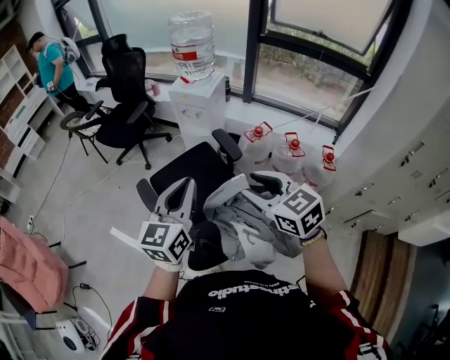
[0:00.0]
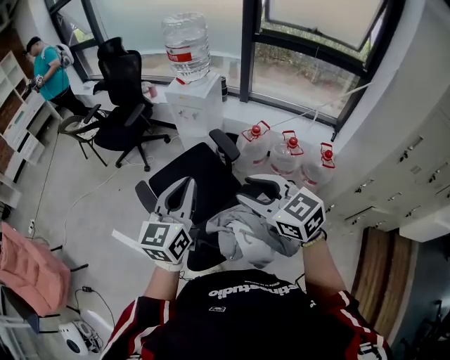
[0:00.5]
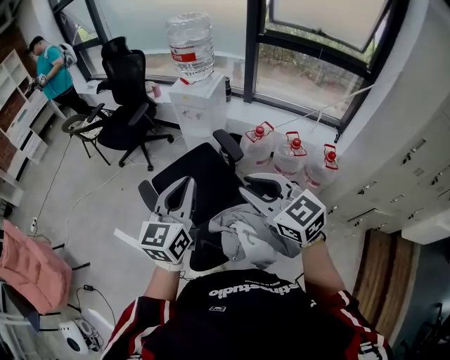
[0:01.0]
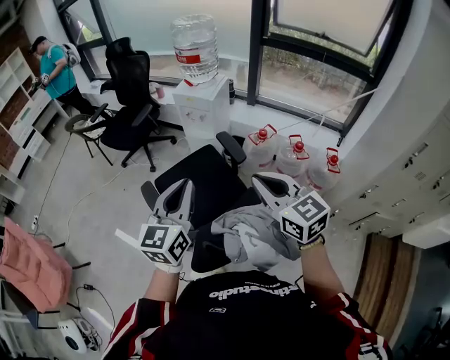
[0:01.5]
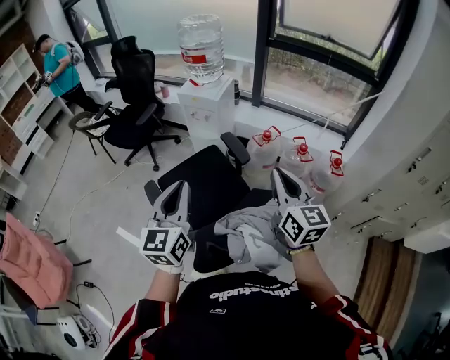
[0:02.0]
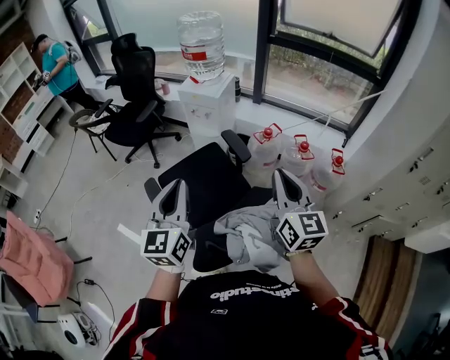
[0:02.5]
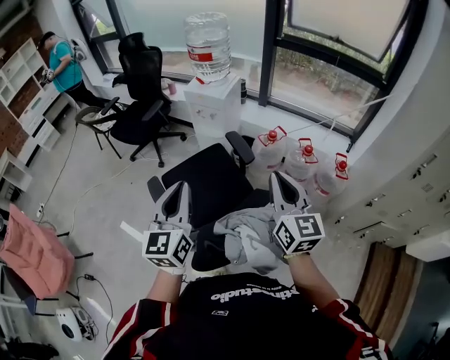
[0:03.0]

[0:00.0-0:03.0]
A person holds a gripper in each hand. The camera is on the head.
0:00.0 to 0:01.5: The right gripper closes.
0:01.5 to 0:03.0: The right gripper changes place by approximately 5 cm, and swivels roughly 30 degrees.

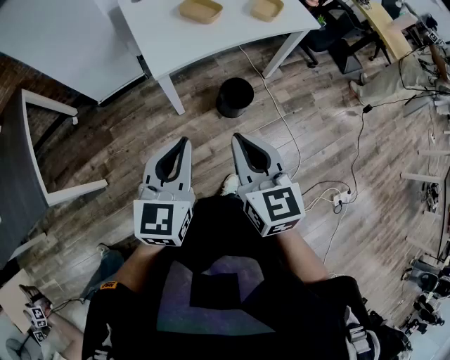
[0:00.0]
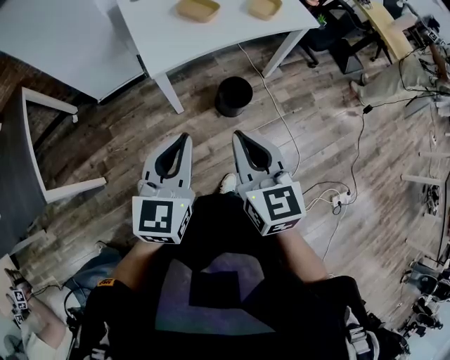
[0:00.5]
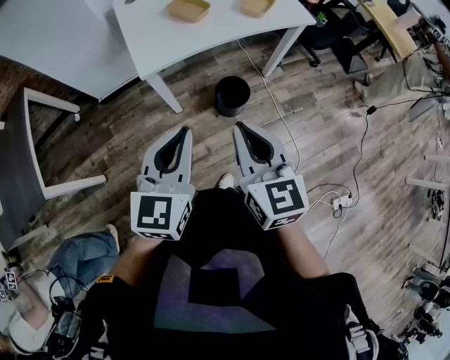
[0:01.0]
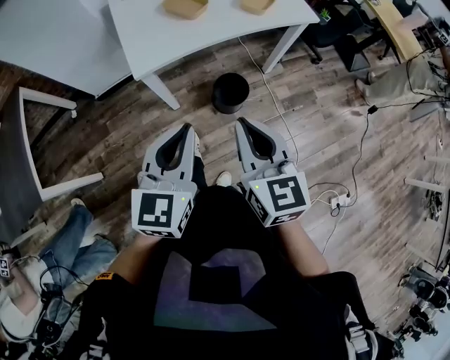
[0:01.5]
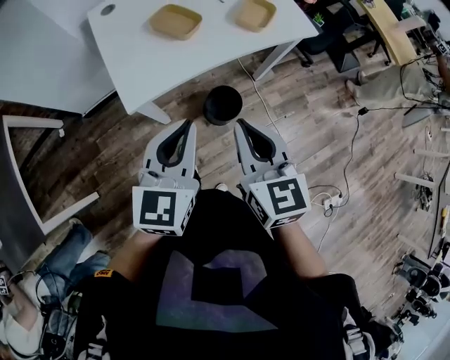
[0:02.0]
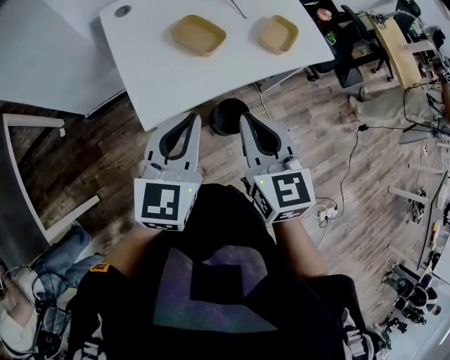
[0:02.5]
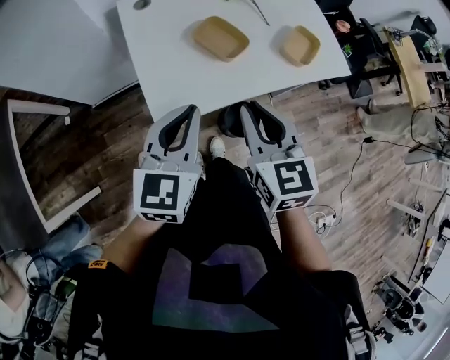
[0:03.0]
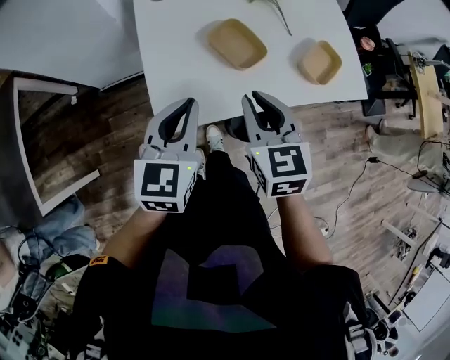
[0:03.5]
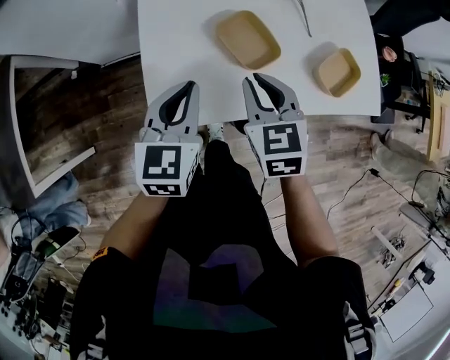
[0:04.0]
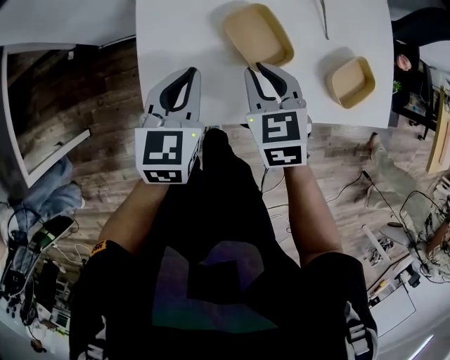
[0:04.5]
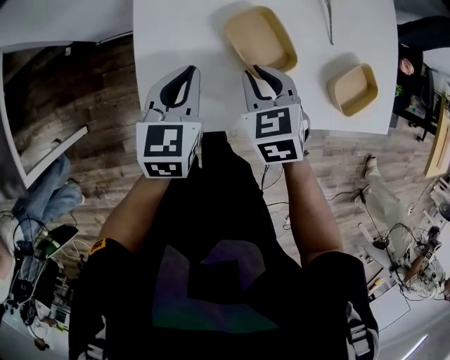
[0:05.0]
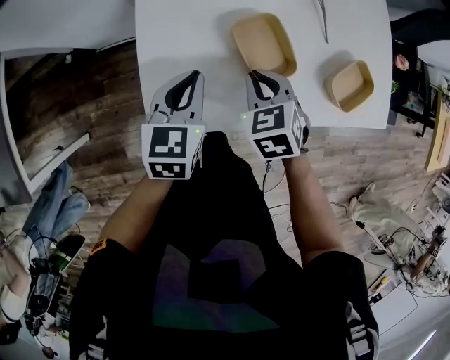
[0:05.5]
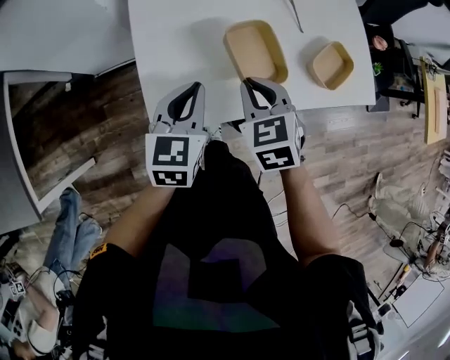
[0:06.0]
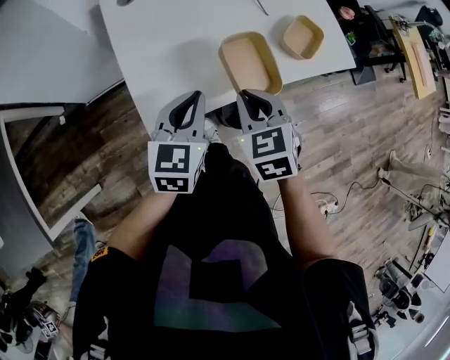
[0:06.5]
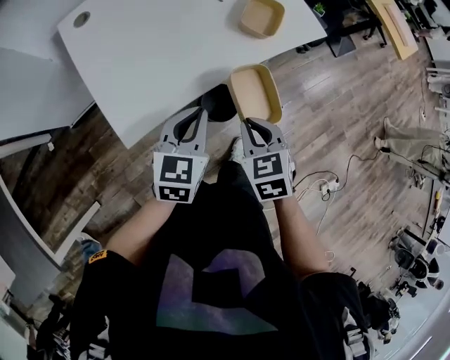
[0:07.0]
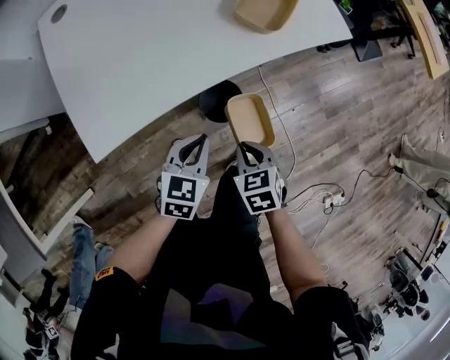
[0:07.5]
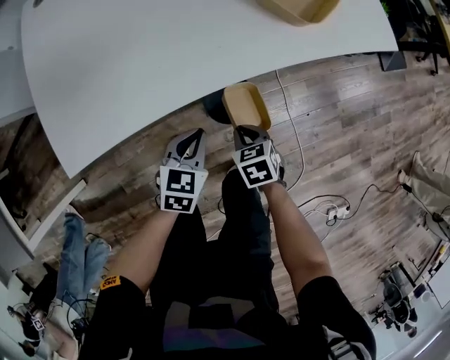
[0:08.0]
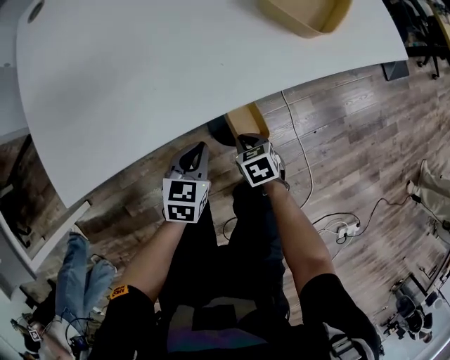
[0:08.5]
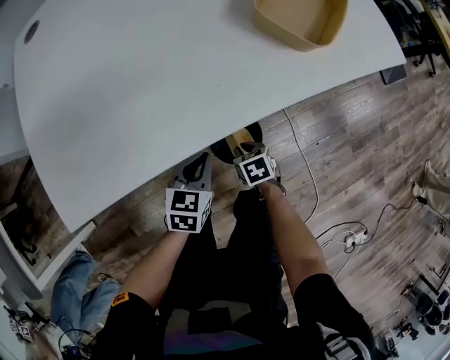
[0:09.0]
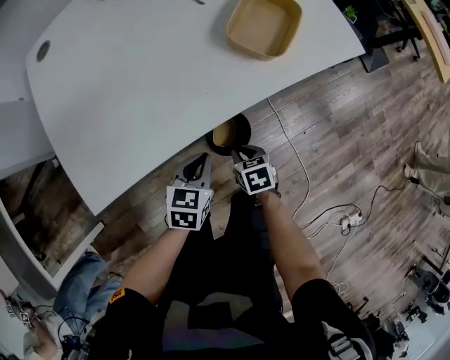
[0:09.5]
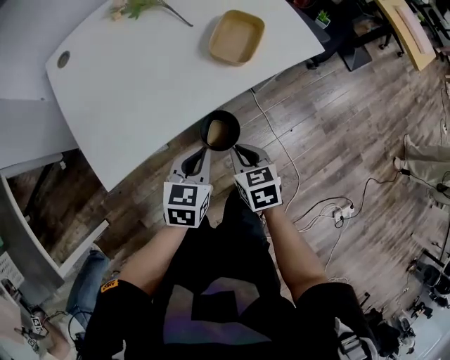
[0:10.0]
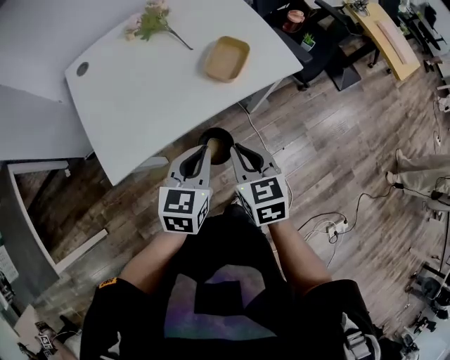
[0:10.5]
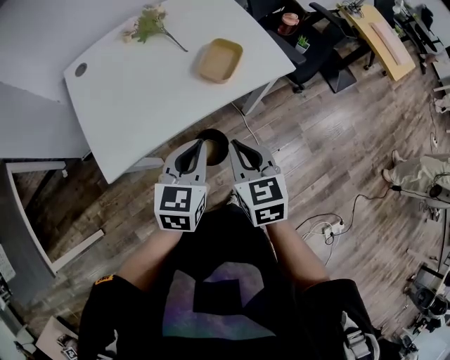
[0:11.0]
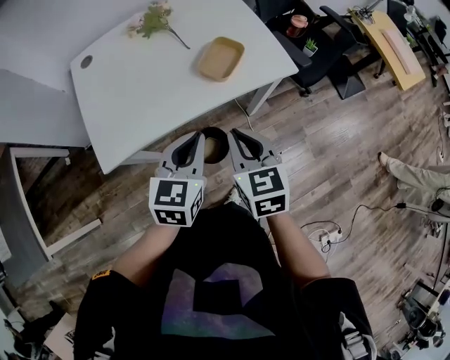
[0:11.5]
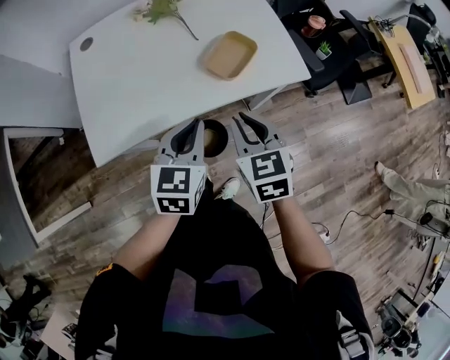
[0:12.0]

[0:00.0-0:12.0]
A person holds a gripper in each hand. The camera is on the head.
0:00.0 to 0:02.0: The left gripper is displaced forward and to the right by some 20 cm, while the right gripper goes some 20 cm forward.
0:02.0 to 0:04.0: The grippers both shift forward by roughly 30 cm. The right gripper swivels approximately 30 degrees, while the left gripper changes its angle by about 20 degrees.
0:04.0 to 0:06.0: The right gripper goes downward and returns, some 10 cm each way.
0:06.0 to 0:08.0: The left gripper goes about 35 cm downward and to the right, and swivels approximately 30 degrees, while the right gripper shifts some 40 cm downward, to the right and backward, and changes its angle by about 30 degrees.
0:08.0 to 0:10.0: The grippers both shift upward by some 20 cm. The right gripper turns by approximately 20 degrees.
0:10.0 to 0:12.0: The right gripper shifts about 20 cm upward and forward, and rotates approximately 20 degrees, while the left gripper is displaced upward by some 15 cm.

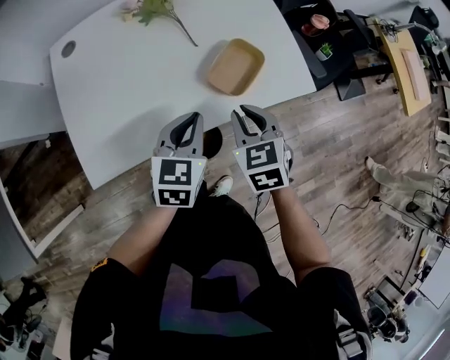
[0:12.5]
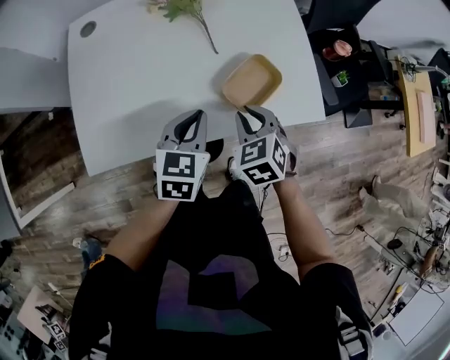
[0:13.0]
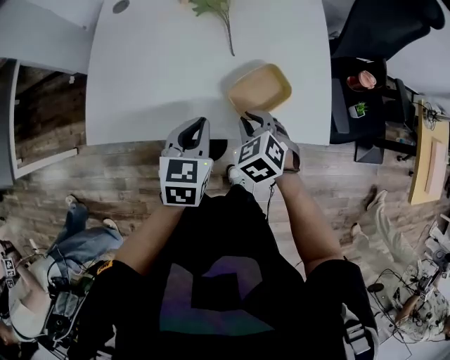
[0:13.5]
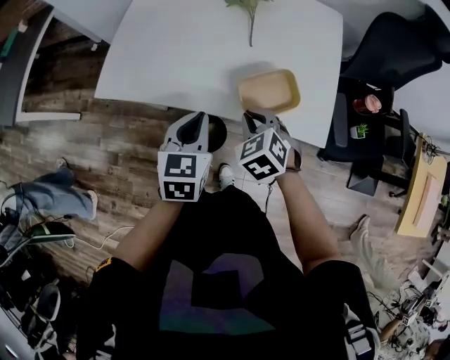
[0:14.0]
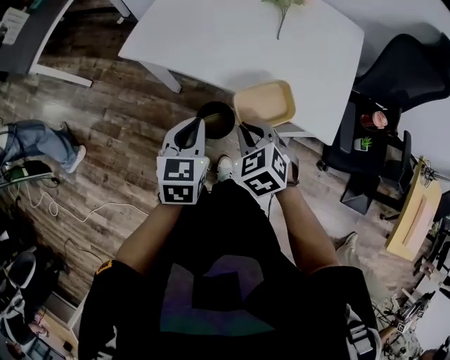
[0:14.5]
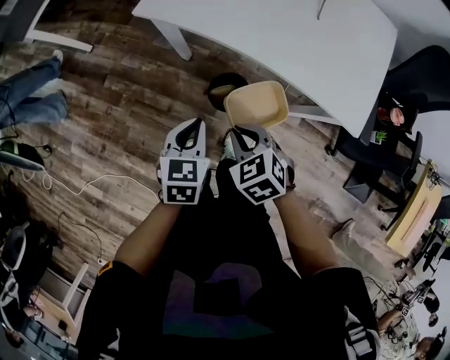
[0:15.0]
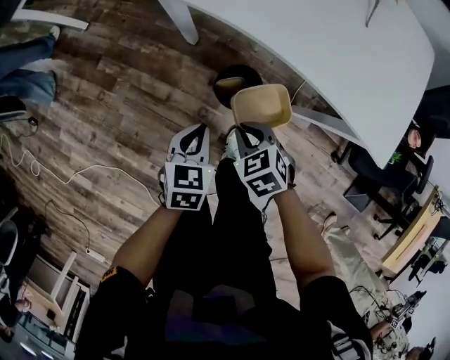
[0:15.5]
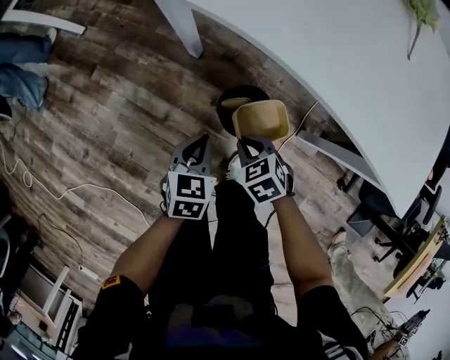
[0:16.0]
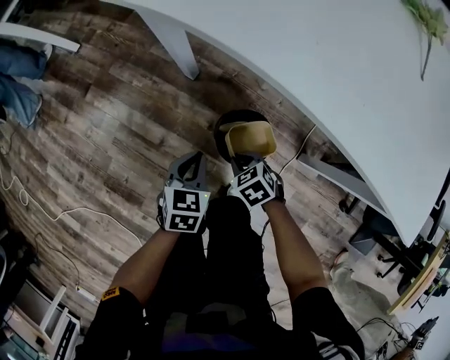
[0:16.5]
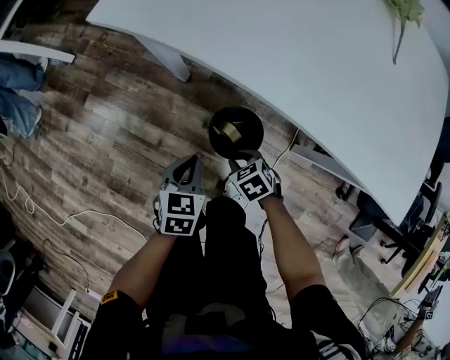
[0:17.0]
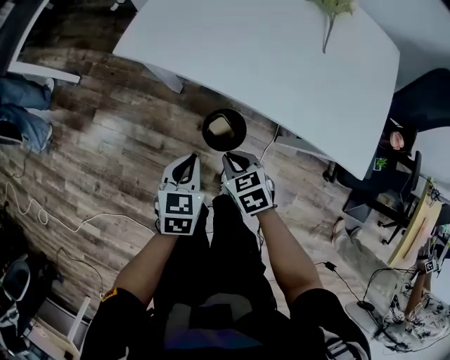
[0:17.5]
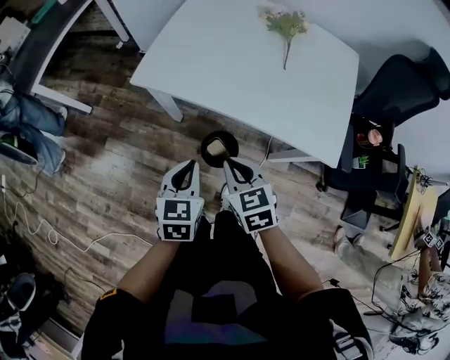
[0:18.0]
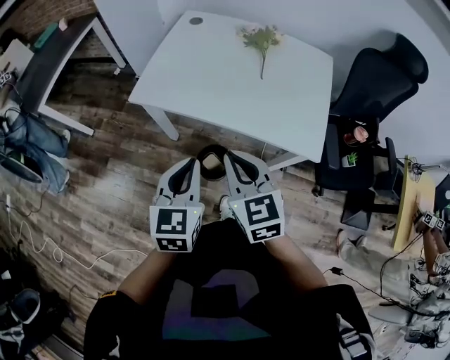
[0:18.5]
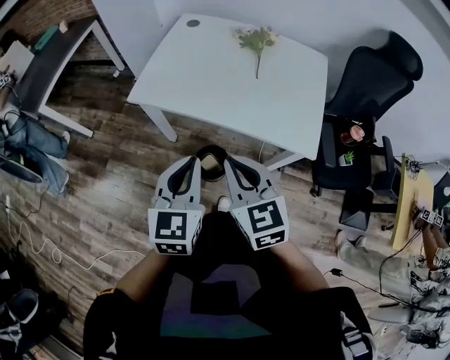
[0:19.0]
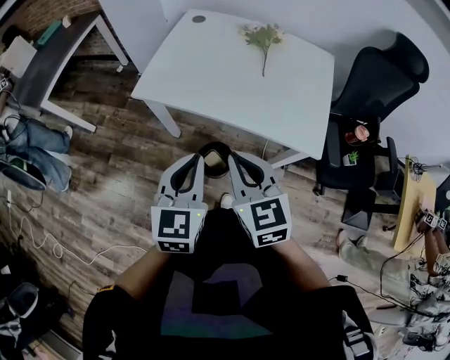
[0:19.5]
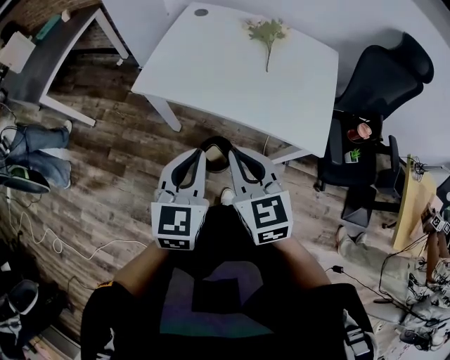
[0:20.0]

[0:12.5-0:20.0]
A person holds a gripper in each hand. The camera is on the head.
0:12.5 to 0:14.5: The left gripper moves about 20 cm, and turns by some 50 degrees. Meanwhile the right gripper moves approximately 15 cm, and changes its angle by roughly 60 degrees.
0:14.5 to 0:16.5: Both grippers travel together downward, approximately 40 cm. The right gripper rotates approximately 20 degrees.
0:16.5 to 0:18.0: Both grippers move upward, approximately 40 cm. The right gripper changes its angle by some 40 degrees.
0:18.0 to 0:20.0: Both grippers move upward, some 15 cm.

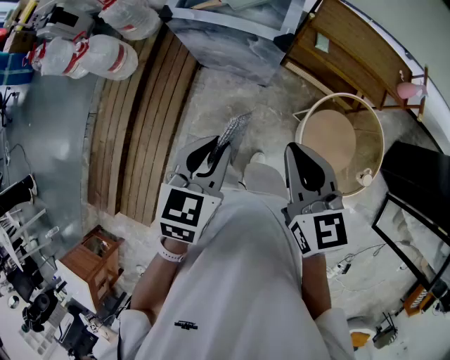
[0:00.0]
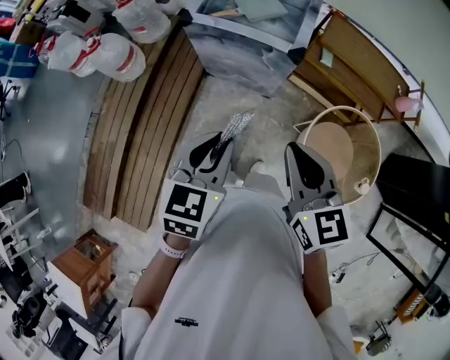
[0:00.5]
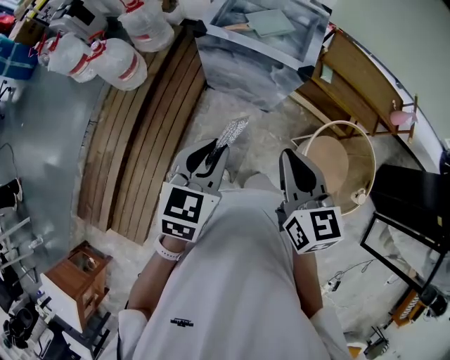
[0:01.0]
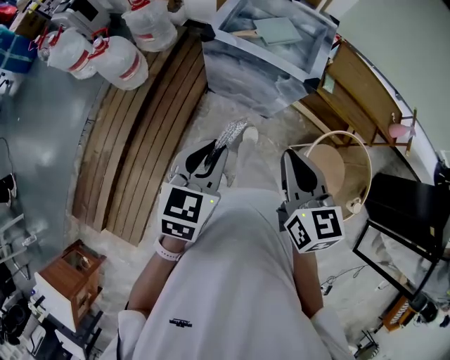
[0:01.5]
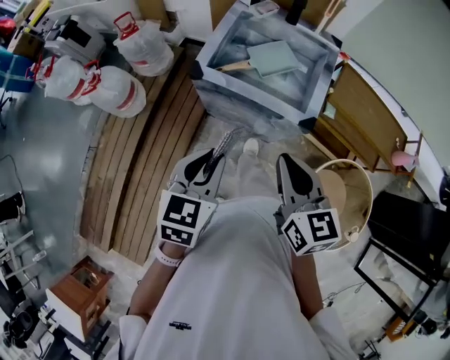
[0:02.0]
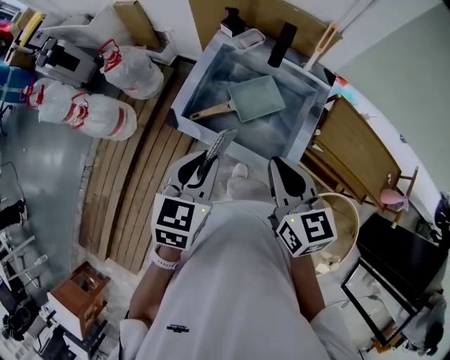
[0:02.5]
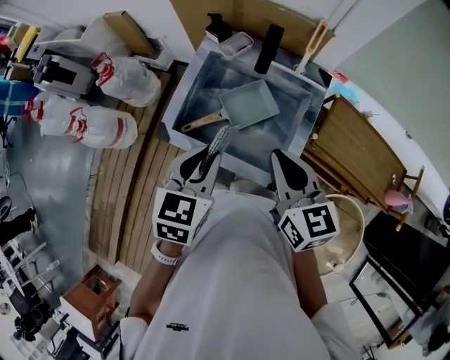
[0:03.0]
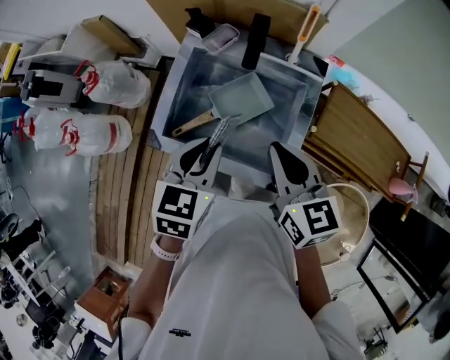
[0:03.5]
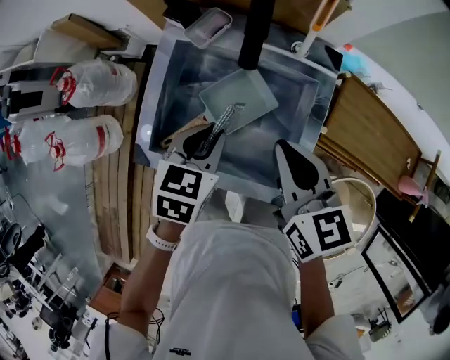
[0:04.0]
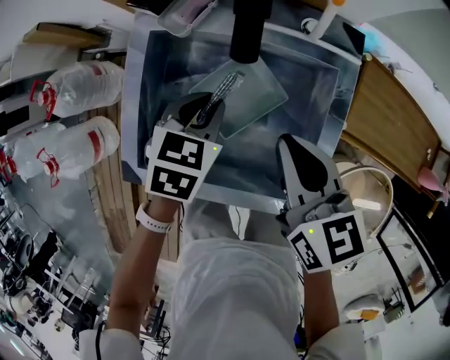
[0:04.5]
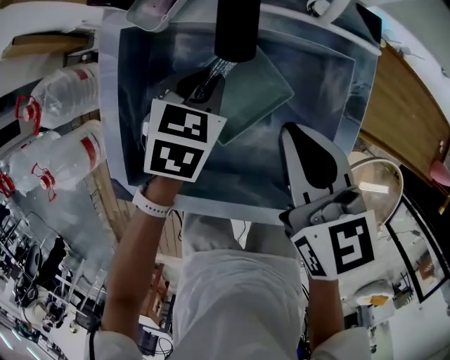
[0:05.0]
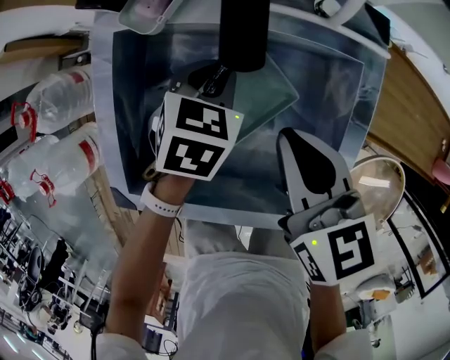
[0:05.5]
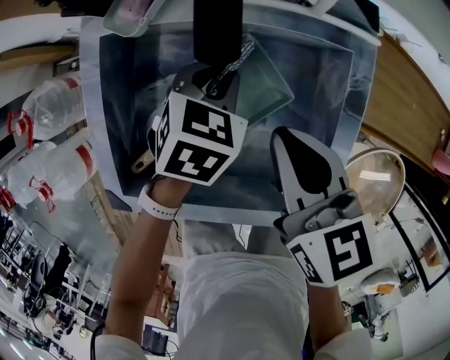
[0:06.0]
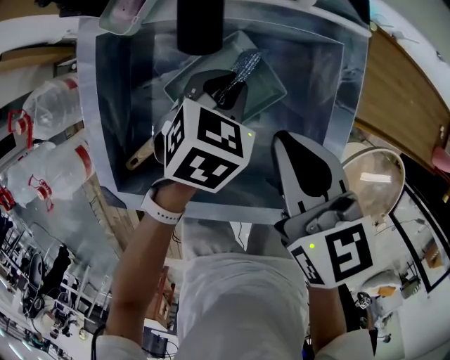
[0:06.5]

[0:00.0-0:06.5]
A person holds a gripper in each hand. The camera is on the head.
0:00.0 to 0:02.0: The grippers both shift forward and to the left by approximately 25 cm.
0:02.0 to 0:04.5: The pair of grippers is taken forward, approximately 40 cm. The grippers both shift downward by some 20 cm. The left gripper changes its angle by about 30 degrees.
0:04.5 to 0:06.5: The left gripper shifts about 10 cm downward and to the right, while the right gripper goes approximately 5 cm downward.
